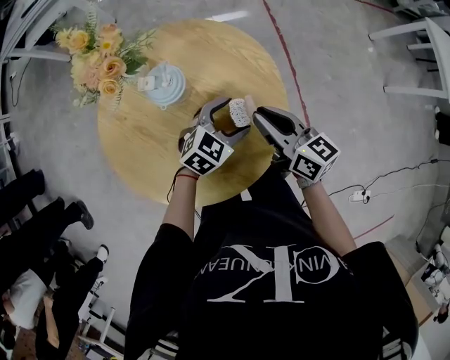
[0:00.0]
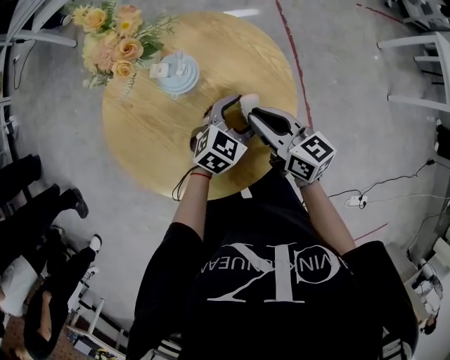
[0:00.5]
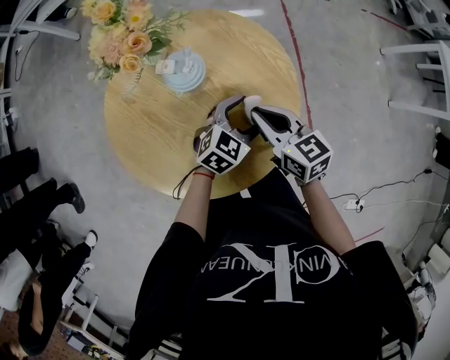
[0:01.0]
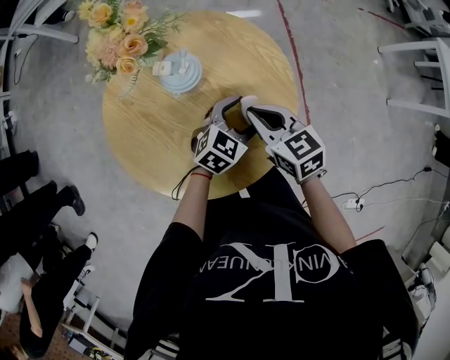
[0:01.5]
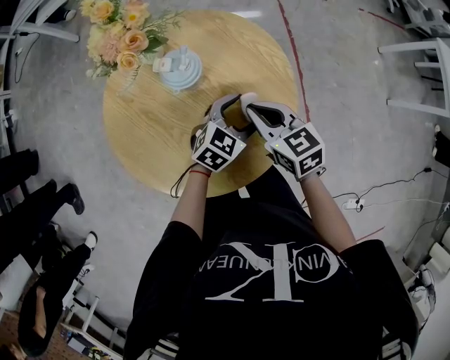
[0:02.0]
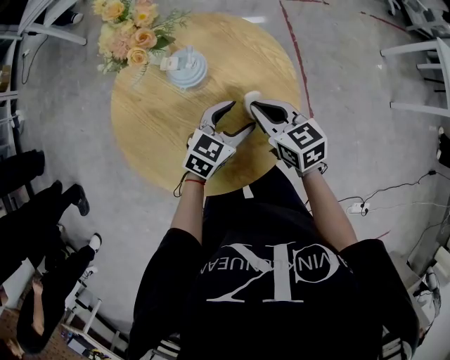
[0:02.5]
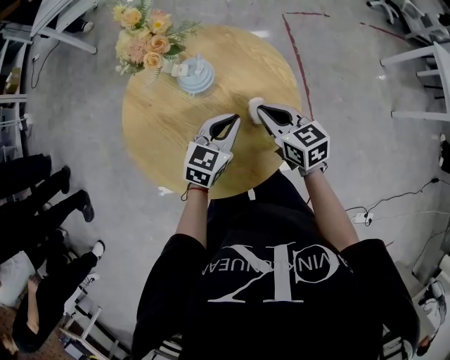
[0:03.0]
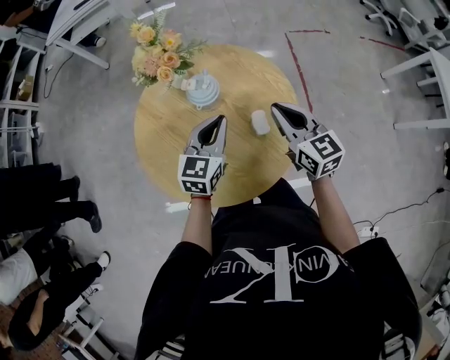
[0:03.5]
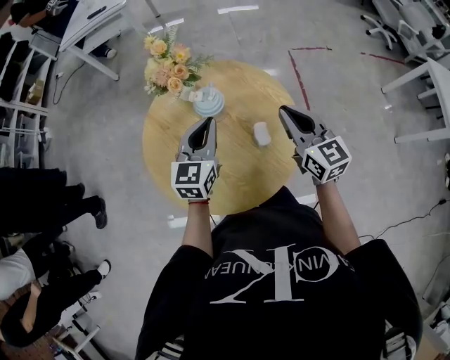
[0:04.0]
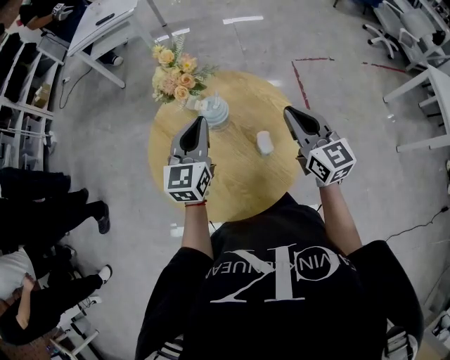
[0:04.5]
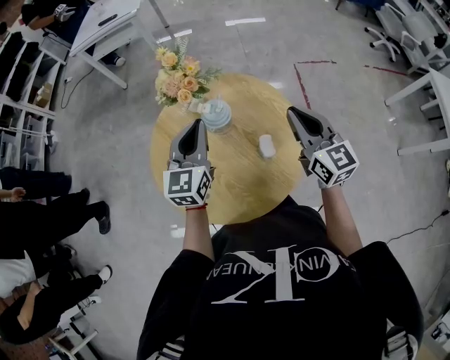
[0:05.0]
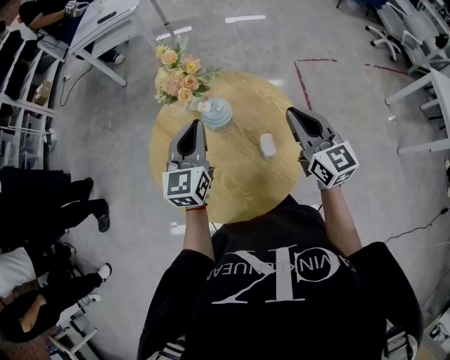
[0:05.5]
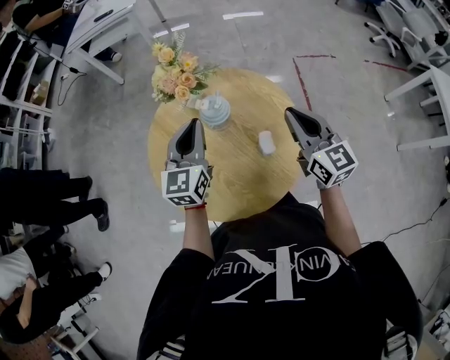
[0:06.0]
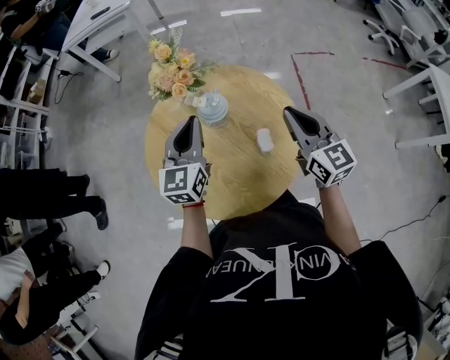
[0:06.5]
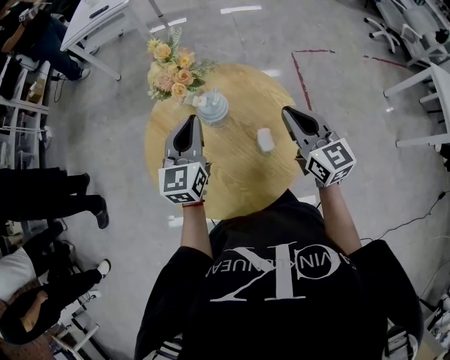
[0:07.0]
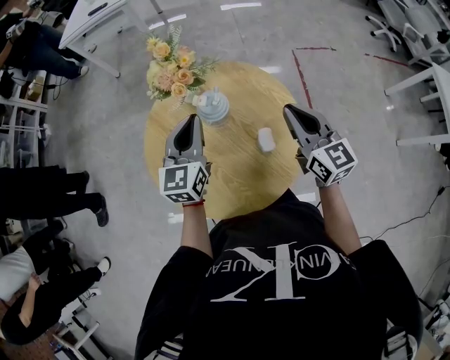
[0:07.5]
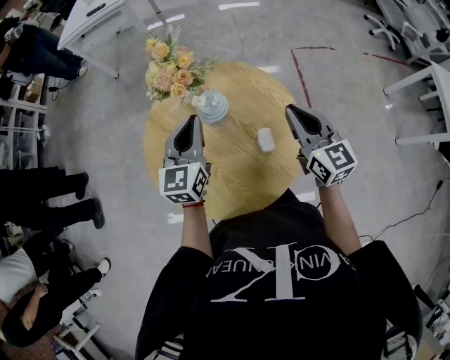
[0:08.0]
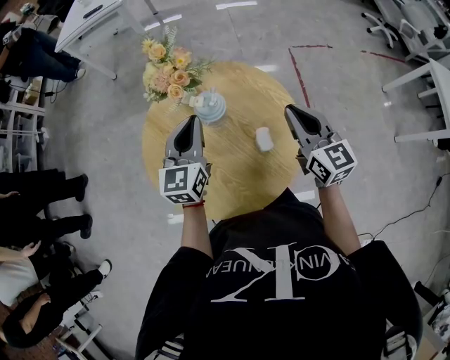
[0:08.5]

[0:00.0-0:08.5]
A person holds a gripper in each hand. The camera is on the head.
0:00.0 to 0:02.0: The right gripper heads to the left, covering approximately 5 cm, and rotates some 30 degrees.
0:02.0 to 0:04.0: The left gripper heads upward and to the left, covering some 25 cm, rotates some 40 degrees, and closes its fingers, while the right gripper goes about 15 cm upward, and swivels about 30 degrees.
0:04.0 to 0:06.5: The left gripper moves about 5 cm.
0:06.5 to 0:08.5: The grippers make only small movements.

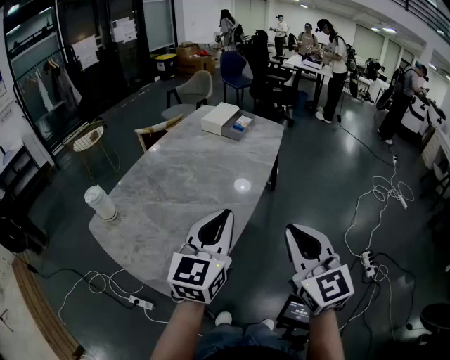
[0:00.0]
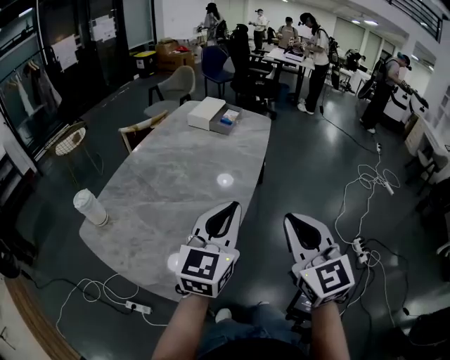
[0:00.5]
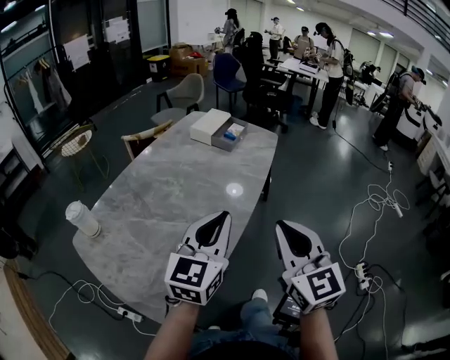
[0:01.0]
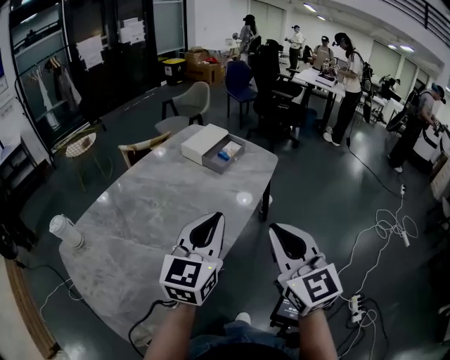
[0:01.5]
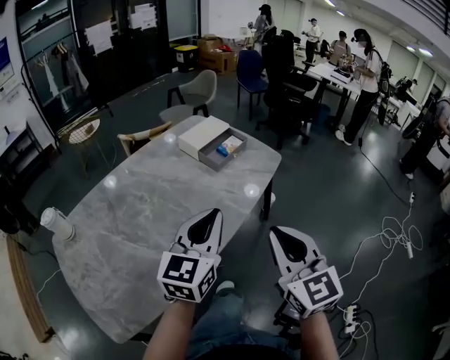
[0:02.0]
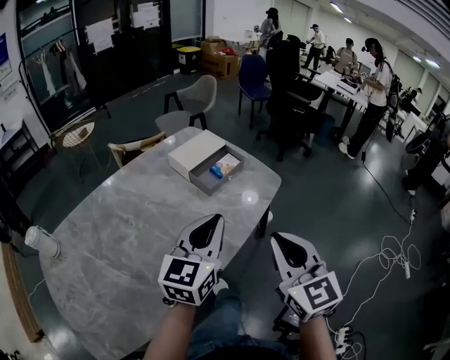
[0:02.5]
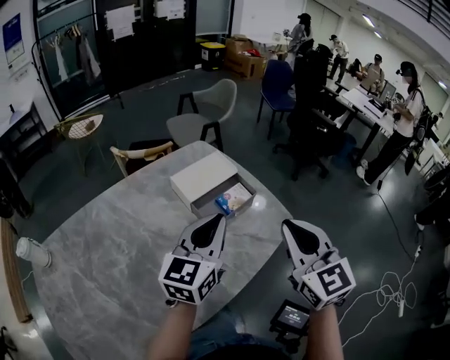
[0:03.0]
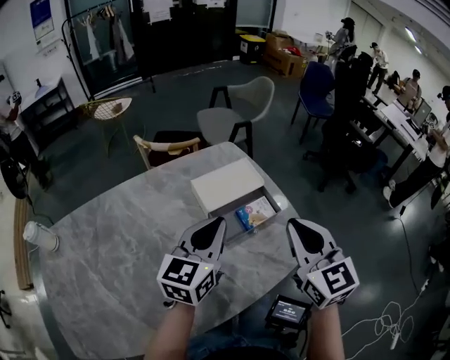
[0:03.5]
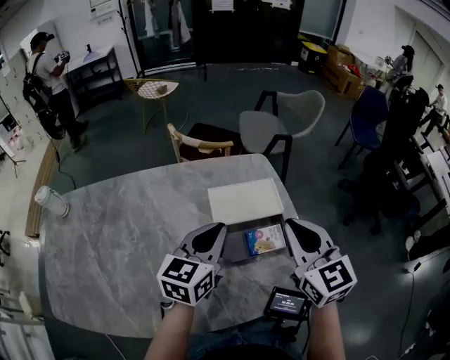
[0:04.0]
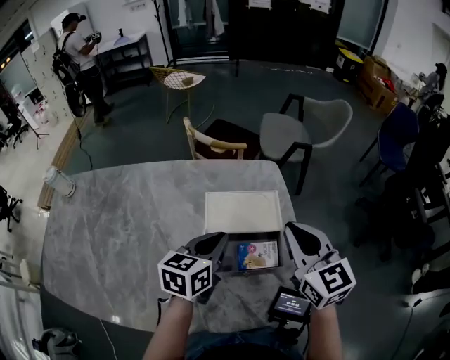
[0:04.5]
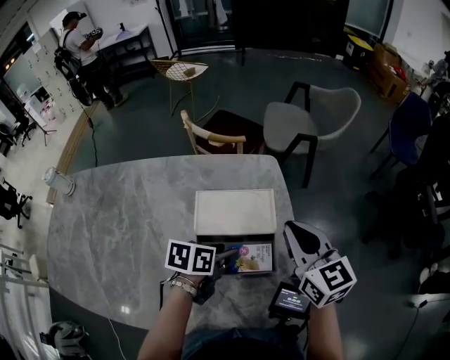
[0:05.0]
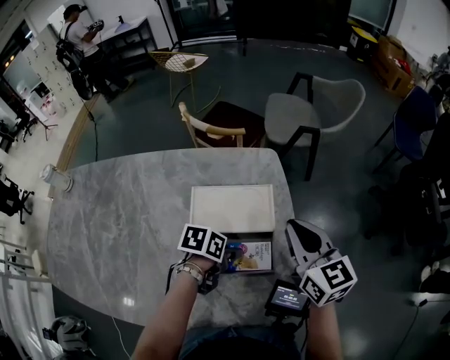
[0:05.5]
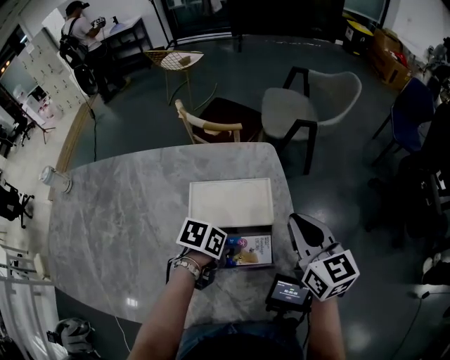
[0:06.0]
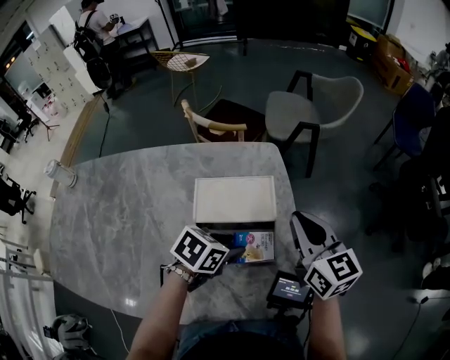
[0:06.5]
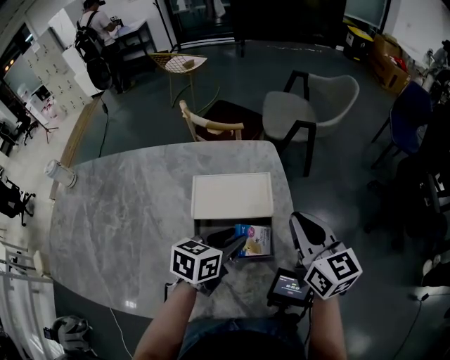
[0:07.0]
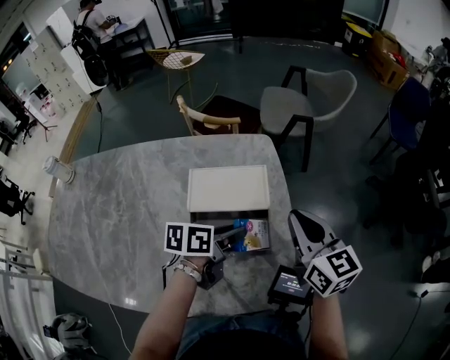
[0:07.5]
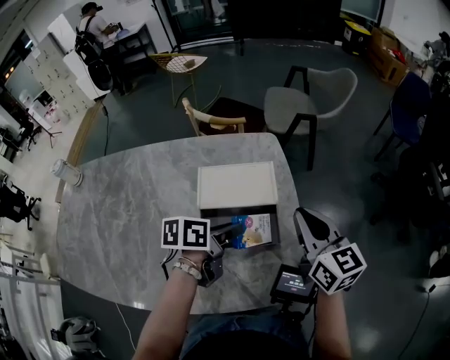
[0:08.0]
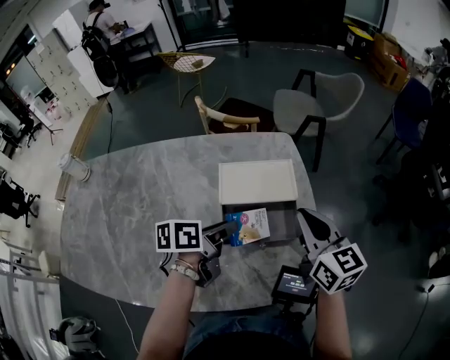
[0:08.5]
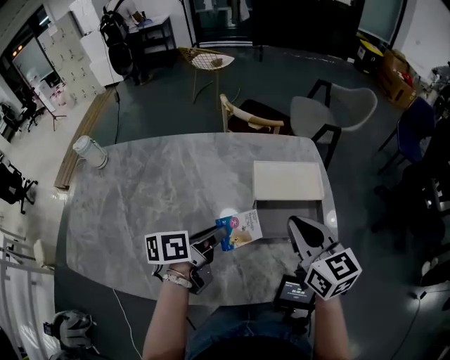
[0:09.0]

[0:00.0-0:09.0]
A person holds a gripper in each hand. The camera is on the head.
0:00.0 to 0:02.0: Both grippers travel together forward and to the right, roughly 30 cm.
0:02.0 to 0:04.5: The pair of grippers is taken about 50 cm. The right gripper turns by approximately 50 degrees, while the left gripper rotates roughly 50 degrees.
0:04.5 to 0:07.0: The left gripper goes roughly 10 cm to the right and downward, and opens. The right gripper travels to the right by about 5 cm.
0:07.0 to 0:09.0: Both grippers move to the left and backward, about 20 cm. The left gripper changes its angle by about 30 degrees.

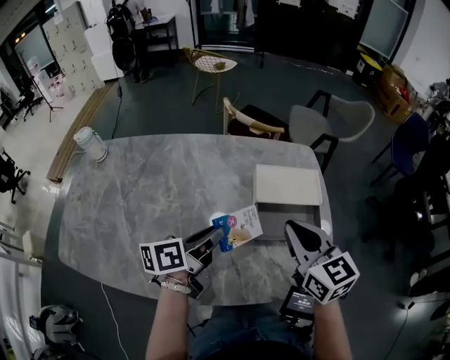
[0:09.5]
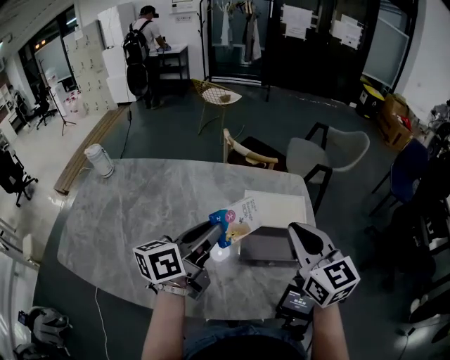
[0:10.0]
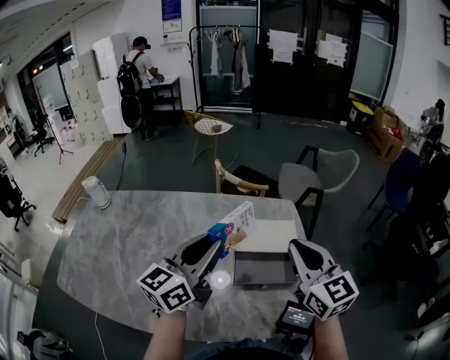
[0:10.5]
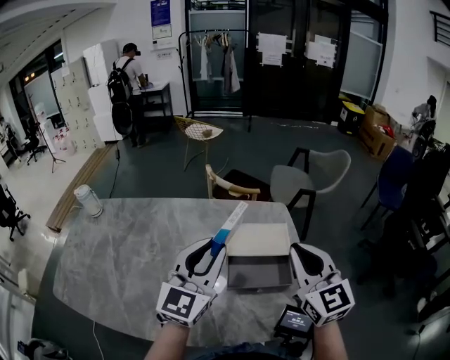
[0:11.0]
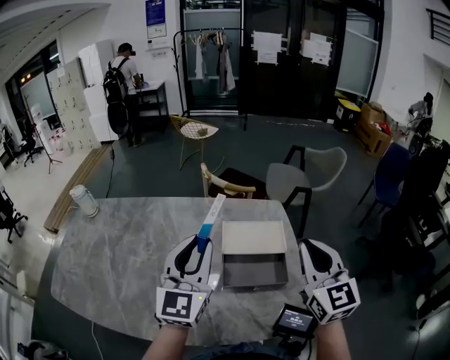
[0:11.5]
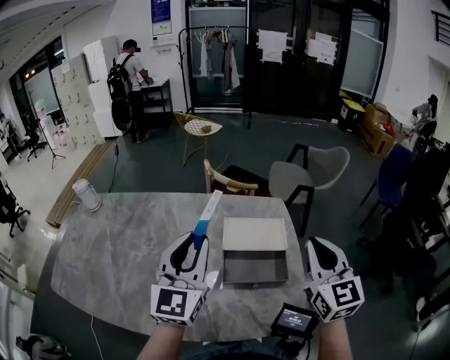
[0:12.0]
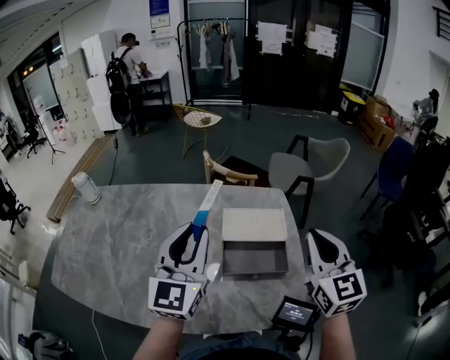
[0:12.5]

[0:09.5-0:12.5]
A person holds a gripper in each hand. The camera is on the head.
0:09.5 to 0:11.0: The right gripper is displaced to the right and upward by roughly 10 cm, and rotates approximately 20 degrees. The left gripper travels upward and to the right by some 15 cm, and twists roughly 70 degrees clockwise, seen from behind.
0:11.0 to 0:12.5: The right gripper heads to the right, covering roughly 5 cm.

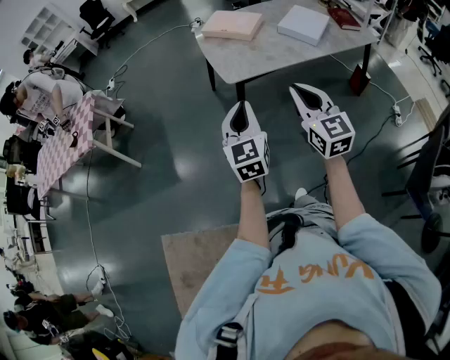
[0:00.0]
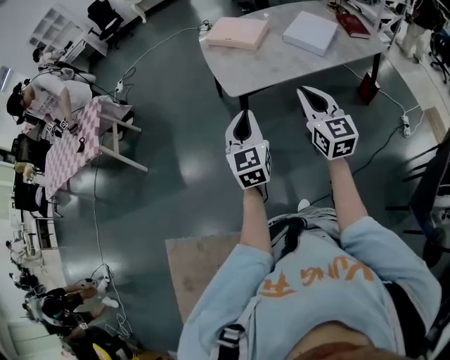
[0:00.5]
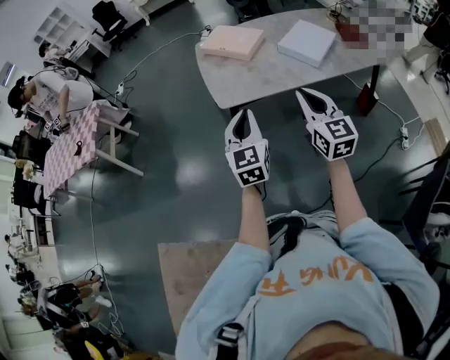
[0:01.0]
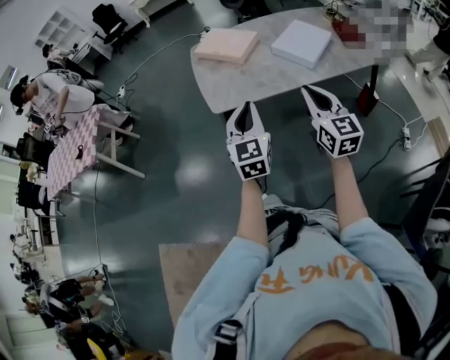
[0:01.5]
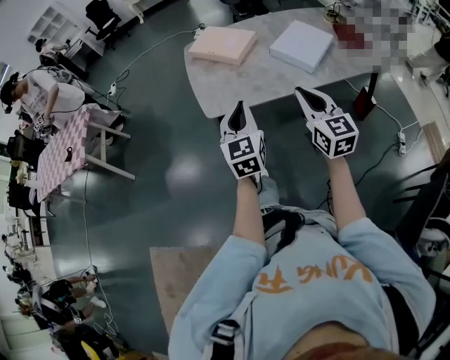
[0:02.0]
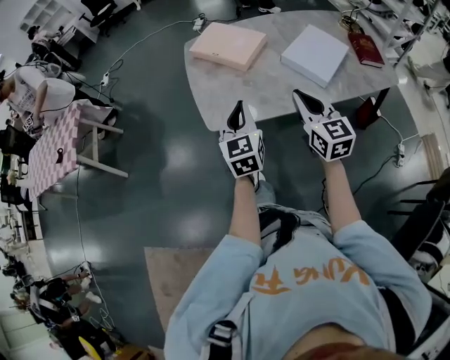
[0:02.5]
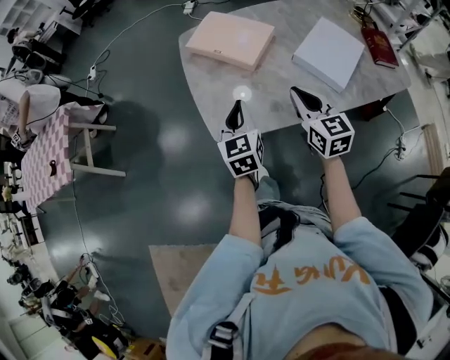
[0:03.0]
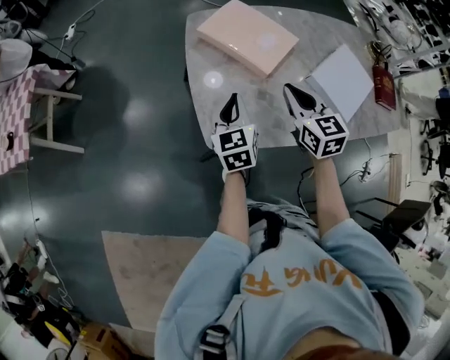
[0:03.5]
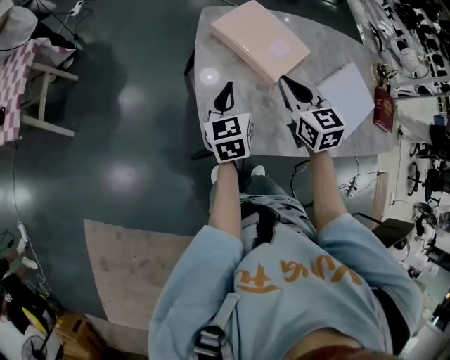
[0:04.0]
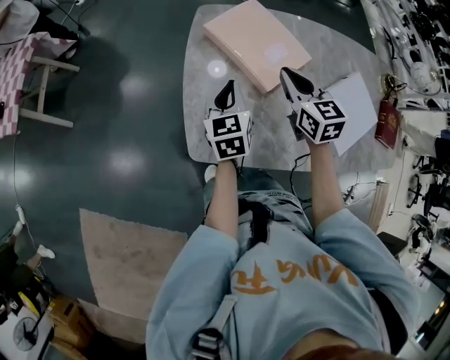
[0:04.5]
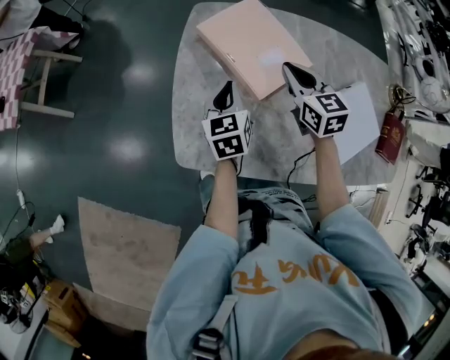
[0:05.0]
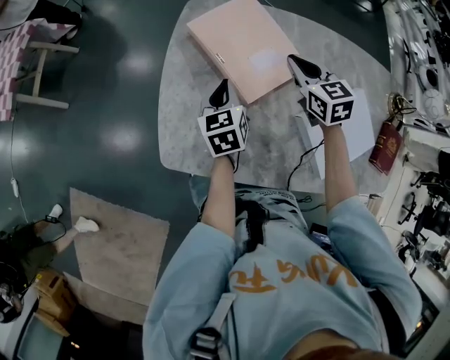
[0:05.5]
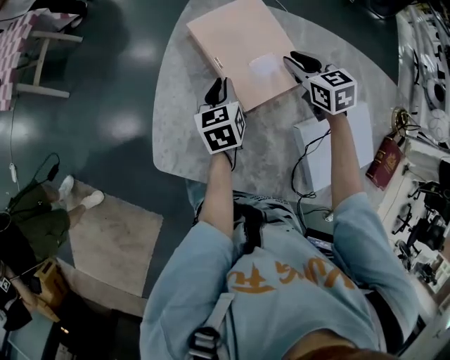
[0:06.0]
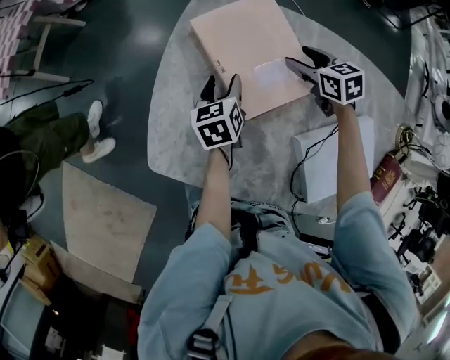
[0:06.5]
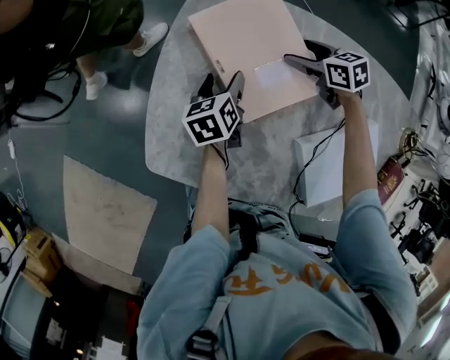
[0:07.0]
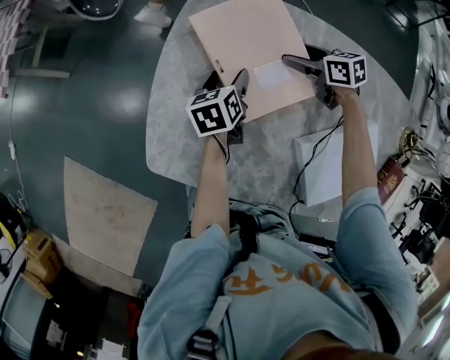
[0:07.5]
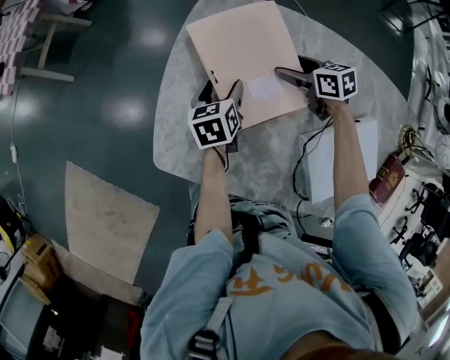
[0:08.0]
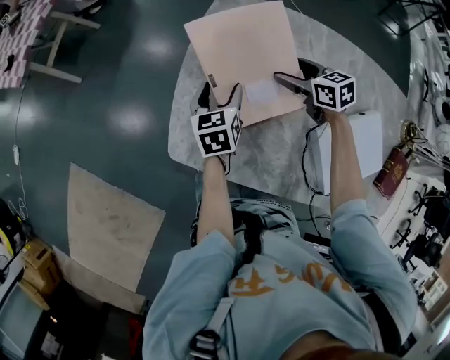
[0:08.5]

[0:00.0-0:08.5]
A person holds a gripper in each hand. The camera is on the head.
0:00.0 to 0:02.0: The grippers both shift to the right and forward by roughly 25 cm.
0:02.0 to 0:04.0: The grippers both shift forward by approximately 40 cm. The left gripper changes its angle by approximately 30 degrees; the right gripper changes its angle by approximately 30 degrees.
0:04.0 to 0:06.5: The right gripper heads forward, to the right and downward, covering some 35 cm, changes its angle by some 40 degrees, and opens, while the left gripper travels to the right, downward and forward by some 25 cm, swivels about 30 degrees, and opens its fingers.
0:06.5 to 0:08.5: Both grippers travel together to the left, some 10 cm.
